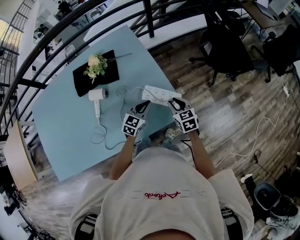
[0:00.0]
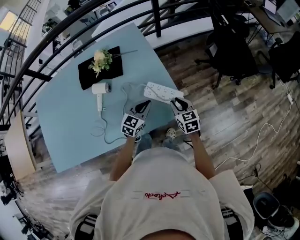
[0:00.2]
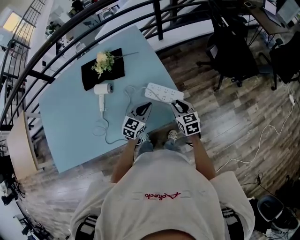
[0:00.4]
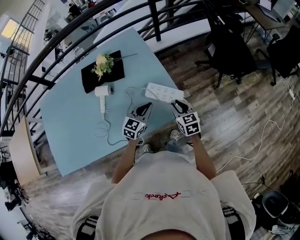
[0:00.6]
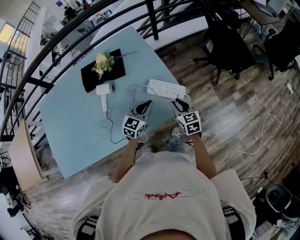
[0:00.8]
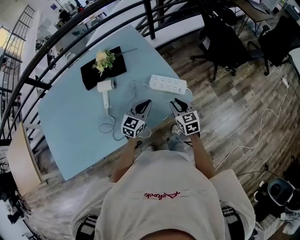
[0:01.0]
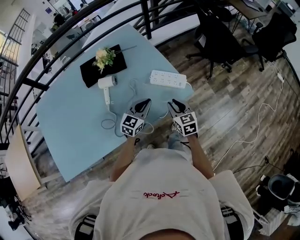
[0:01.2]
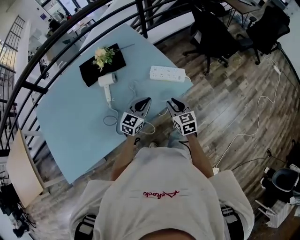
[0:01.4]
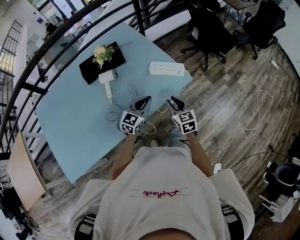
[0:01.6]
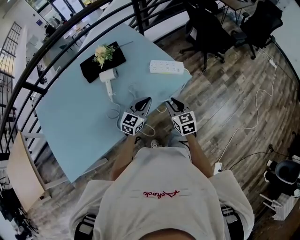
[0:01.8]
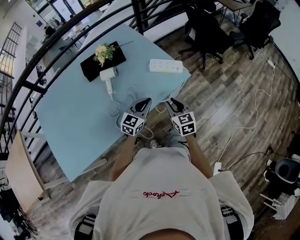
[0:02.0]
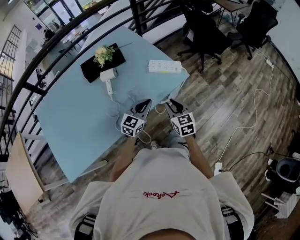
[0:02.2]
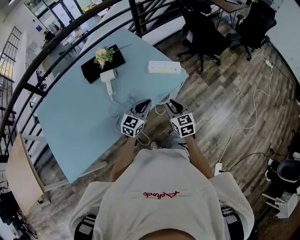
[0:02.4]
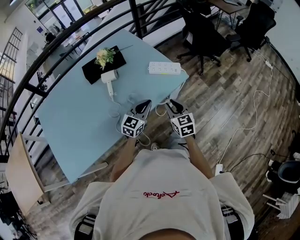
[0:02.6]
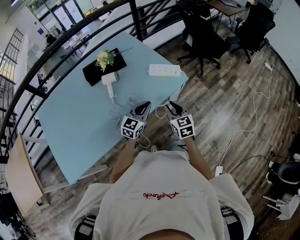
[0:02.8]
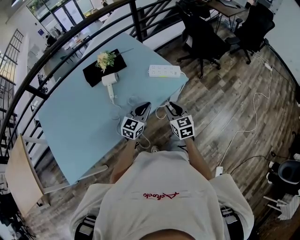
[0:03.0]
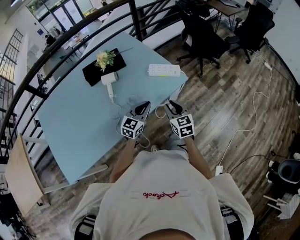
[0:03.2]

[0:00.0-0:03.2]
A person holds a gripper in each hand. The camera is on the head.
0:00.0 to 0:01.6: The right gripper heads backward and to the left, covering some 25 cm. The left gripper moves backward, about 20 cm.
0:01.6 to 0:03.2: Both grippers travel together backward, roughly 5 cm.

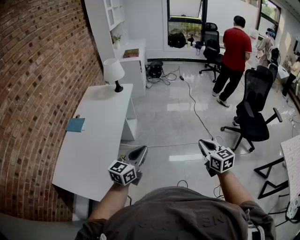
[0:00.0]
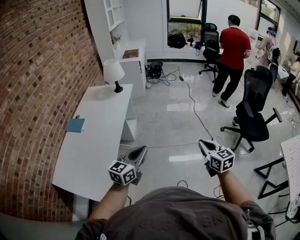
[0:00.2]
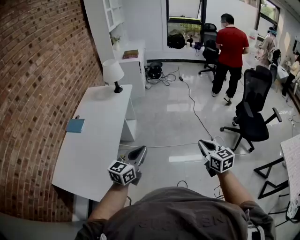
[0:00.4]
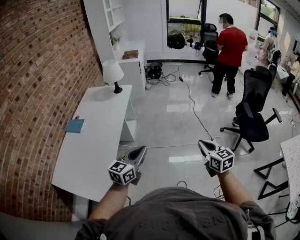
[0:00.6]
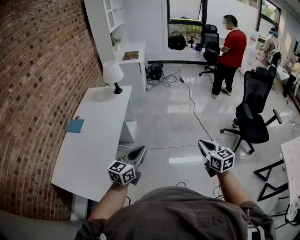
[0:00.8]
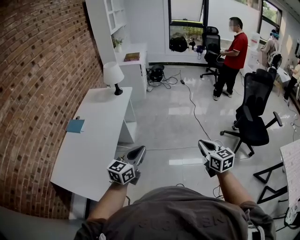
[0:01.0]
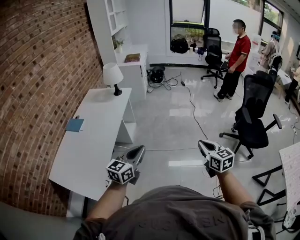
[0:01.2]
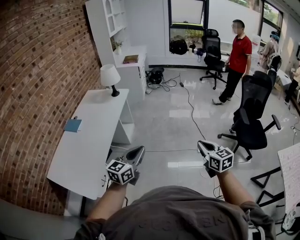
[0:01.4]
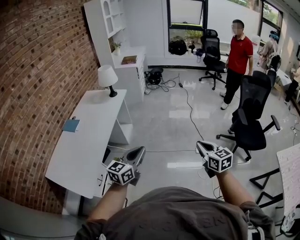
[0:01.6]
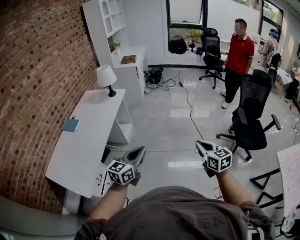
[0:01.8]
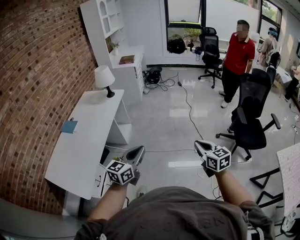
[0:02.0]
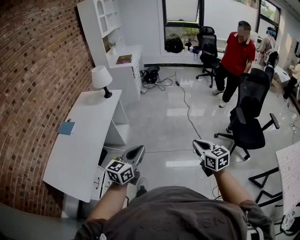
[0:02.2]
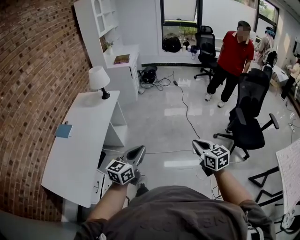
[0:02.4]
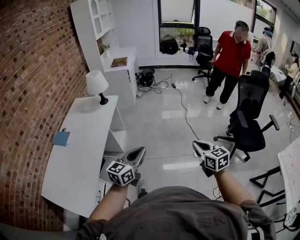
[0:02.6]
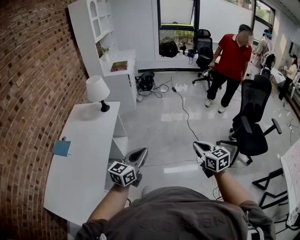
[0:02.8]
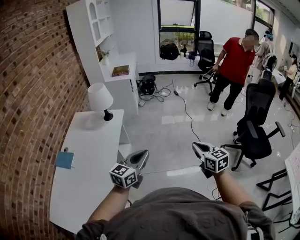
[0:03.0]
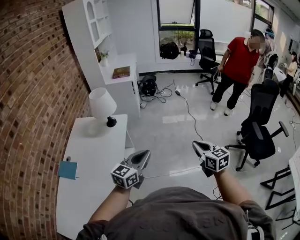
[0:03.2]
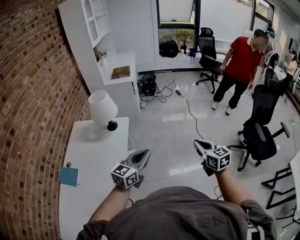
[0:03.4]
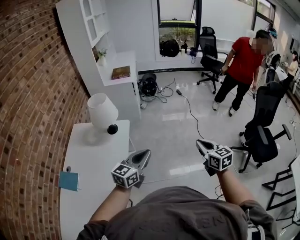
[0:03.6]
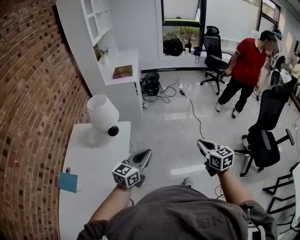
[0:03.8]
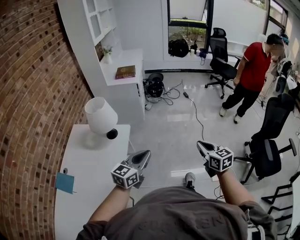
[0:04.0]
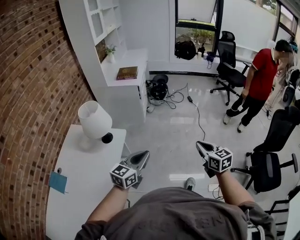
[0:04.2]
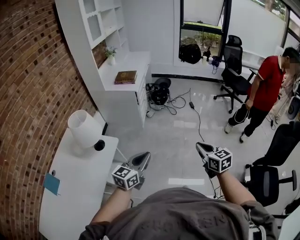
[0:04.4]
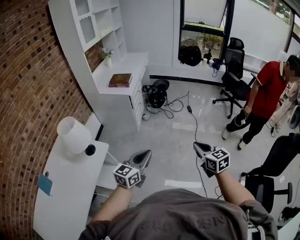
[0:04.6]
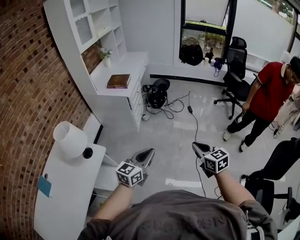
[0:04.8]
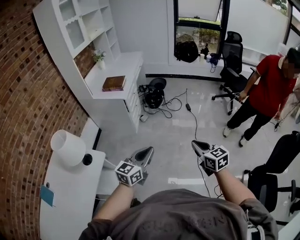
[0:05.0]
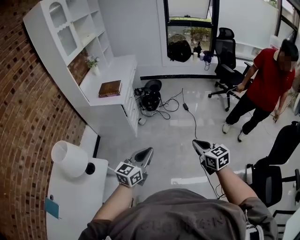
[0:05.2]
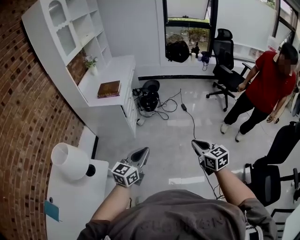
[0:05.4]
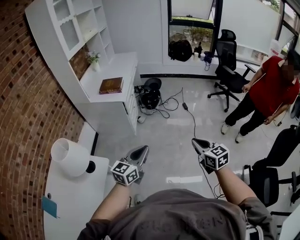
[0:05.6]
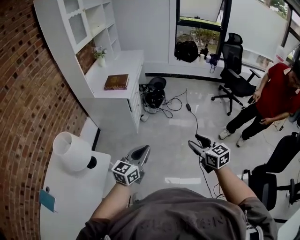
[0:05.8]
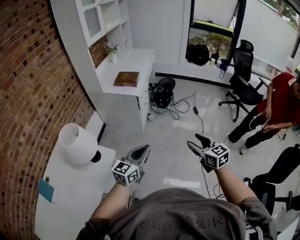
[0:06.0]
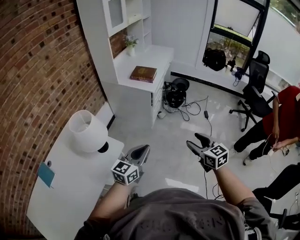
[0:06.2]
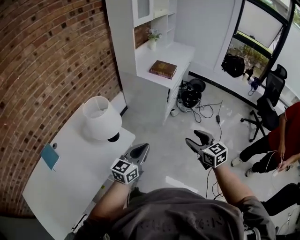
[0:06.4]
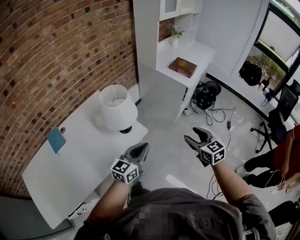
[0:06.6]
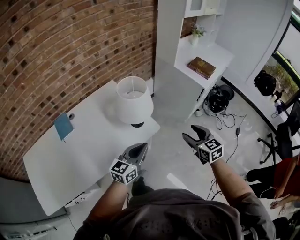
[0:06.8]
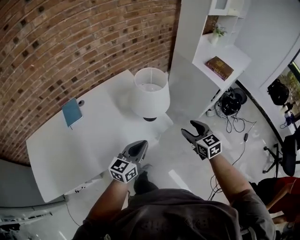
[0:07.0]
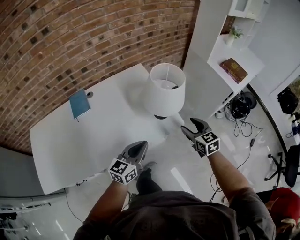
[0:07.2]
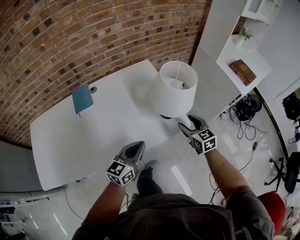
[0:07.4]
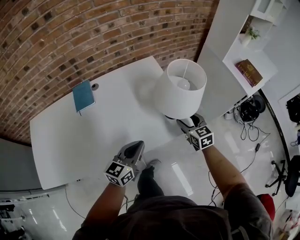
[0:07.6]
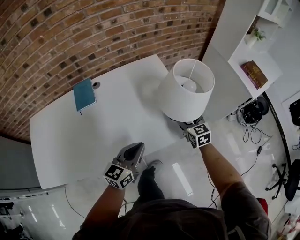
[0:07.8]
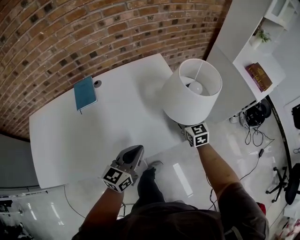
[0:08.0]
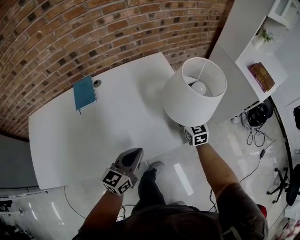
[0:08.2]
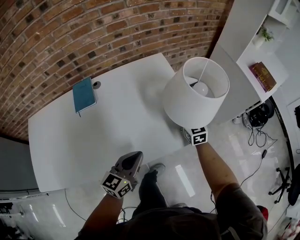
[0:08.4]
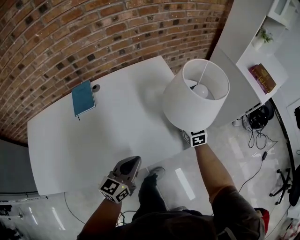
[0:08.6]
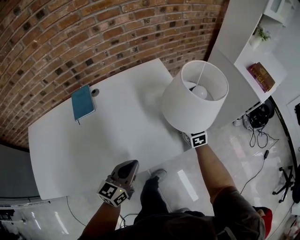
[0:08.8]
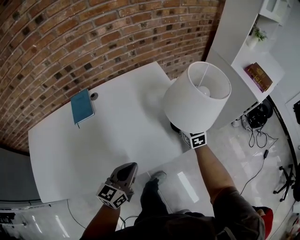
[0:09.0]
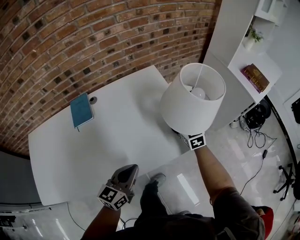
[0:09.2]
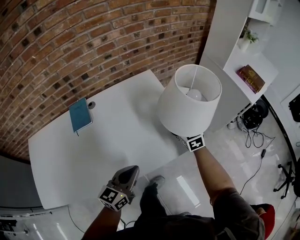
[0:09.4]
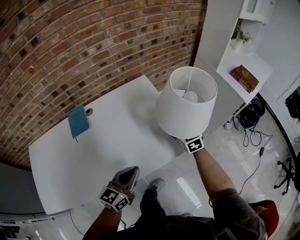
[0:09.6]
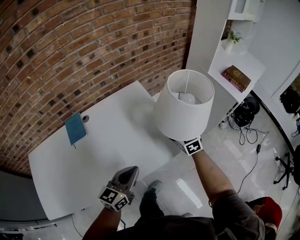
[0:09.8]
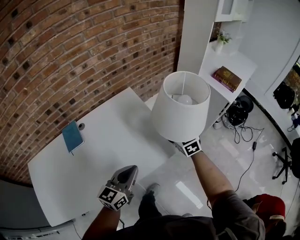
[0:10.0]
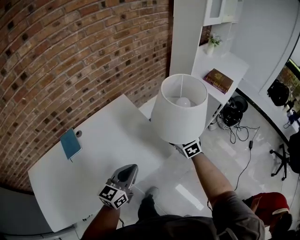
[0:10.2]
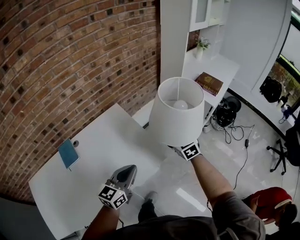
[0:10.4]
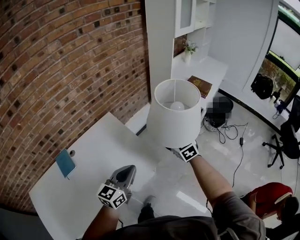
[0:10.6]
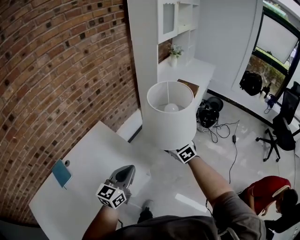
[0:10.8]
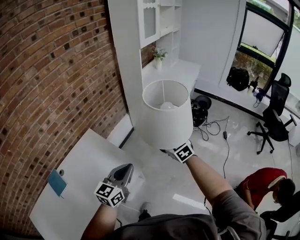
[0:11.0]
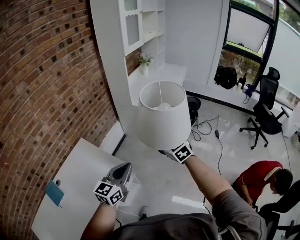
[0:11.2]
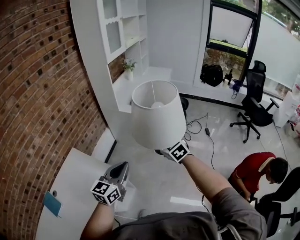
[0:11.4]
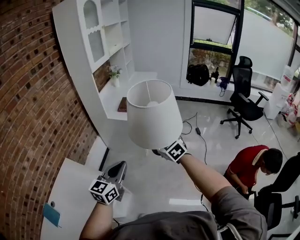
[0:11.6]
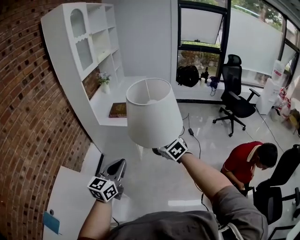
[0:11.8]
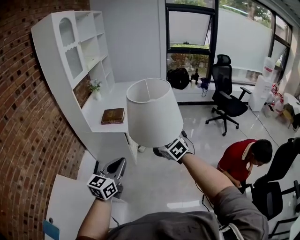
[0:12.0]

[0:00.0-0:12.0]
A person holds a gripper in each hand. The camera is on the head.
0:00.0 to 0:01.6: Both grippers move to the right, about 15 cm.
0:01.6 to 0:03.0: The two grippers go about 30 cm forward and to the left.
0:03.0 to 0:04.4: Both grippers are carried forward, roughly 50 cm.
0:04.4 to 0:06.0: Both grippers move forward, roughly 20 cm. The right gripper opens its fingers.
0:06.0 to 0:07.6: Both grippers are carried some 50 cm. The left gripper swivels about 50 degrees, while the right gripper changes its angle by about 50 degrees.
0:07.6 to 0:09.0: The left gripper heads to the left and downward, covering about 5 cm. The right gripper travels forward and to the left by roughly 10 cm, and closes up.
0:09.0 to 0:10.4: The right gripper is displaced to the right and upward by some 20 cm. The left gripper moves upward, to the right and forward, approximately 20 cm.
0:10.4 to 0:12.0: The left gripper shifts by about 40 cm, and rotates some 40 degrees. Meanwhile the right gripper shifts by some 40 cm, and turns by roughly 30 degrees.

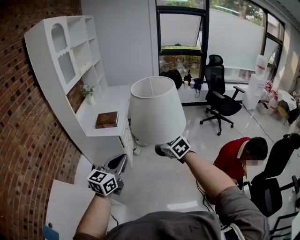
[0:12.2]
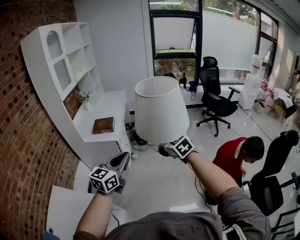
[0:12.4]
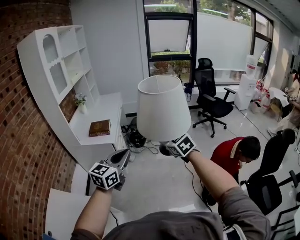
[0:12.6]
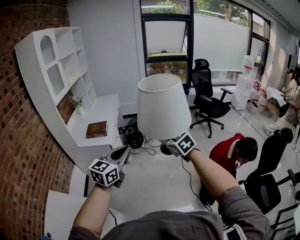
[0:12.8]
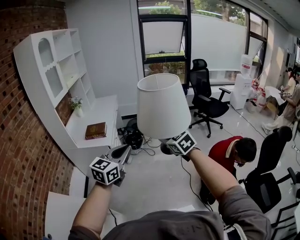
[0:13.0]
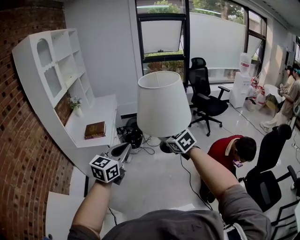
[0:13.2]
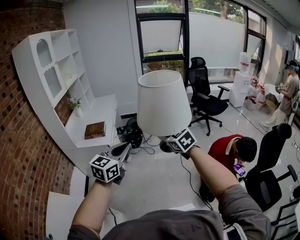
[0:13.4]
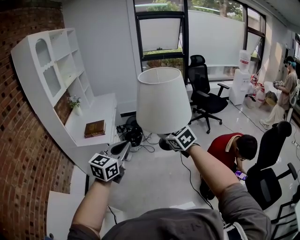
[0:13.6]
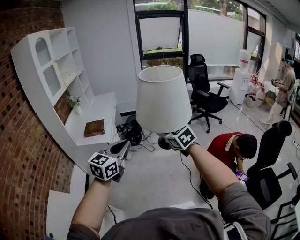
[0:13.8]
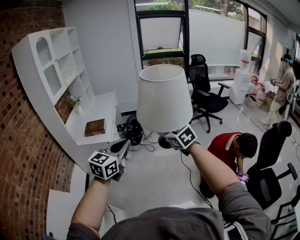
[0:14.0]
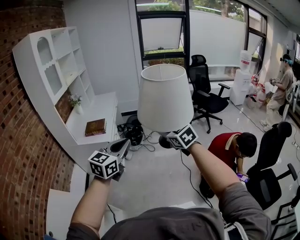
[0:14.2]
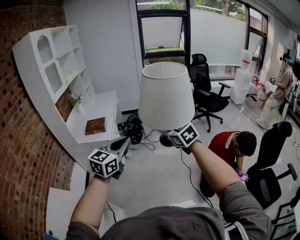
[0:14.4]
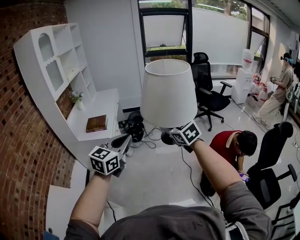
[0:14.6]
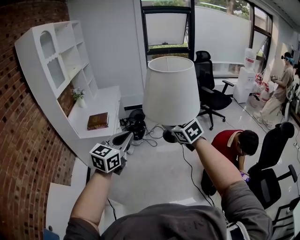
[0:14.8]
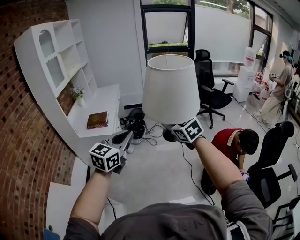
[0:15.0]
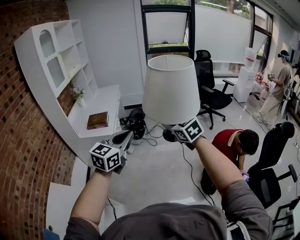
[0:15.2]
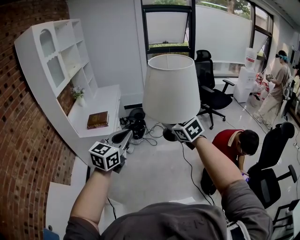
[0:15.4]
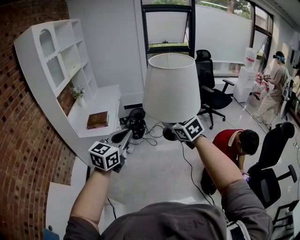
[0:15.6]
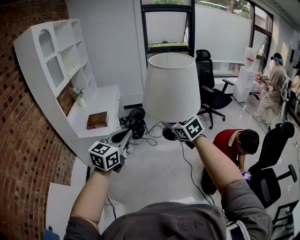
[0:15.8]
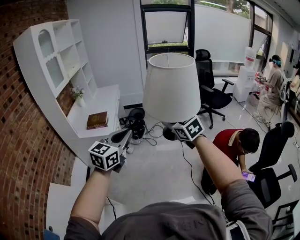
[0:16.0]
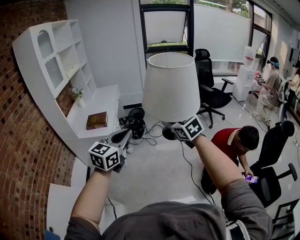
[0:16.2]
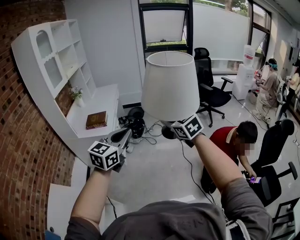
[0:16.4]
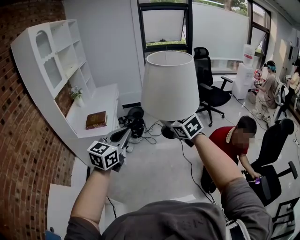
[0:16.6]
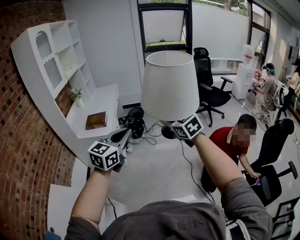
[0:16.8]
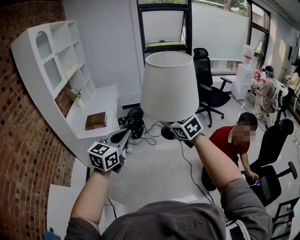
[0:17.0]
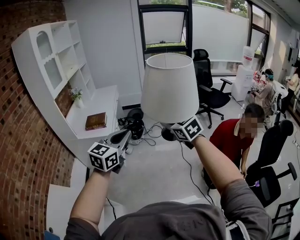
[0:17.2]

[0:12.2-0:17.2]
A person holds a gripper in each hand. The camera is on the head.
0:12.2 to 0:13.8: The right gripper moves to the right, about 10 cm; the left gripper shifts roughly 10 cm to the right and upward.
0:13.8 to 0:15.6: The grippers stay close to where they were, moving slightly.
0:15.6 to 0:17.2: The two grippers keep their place.

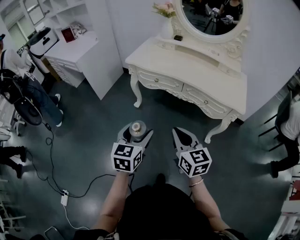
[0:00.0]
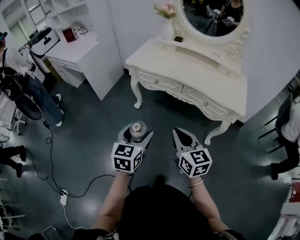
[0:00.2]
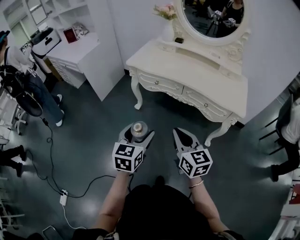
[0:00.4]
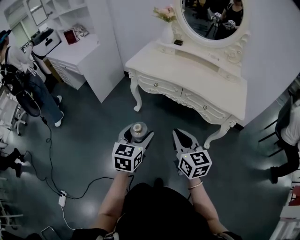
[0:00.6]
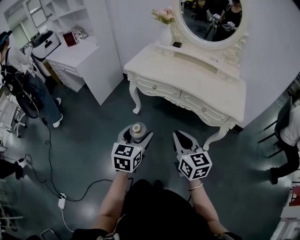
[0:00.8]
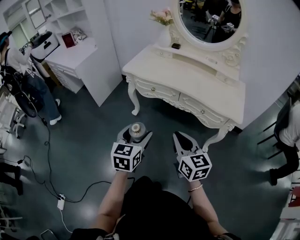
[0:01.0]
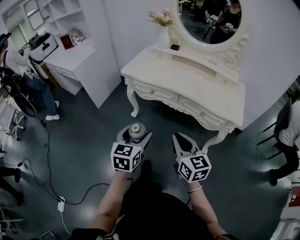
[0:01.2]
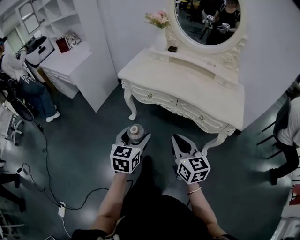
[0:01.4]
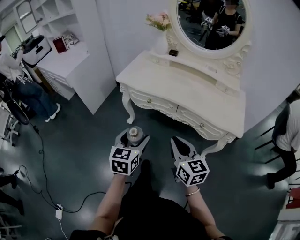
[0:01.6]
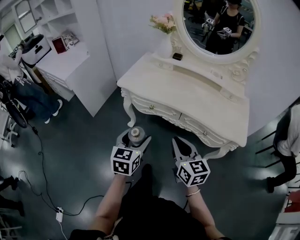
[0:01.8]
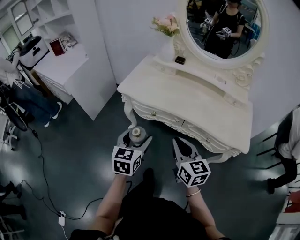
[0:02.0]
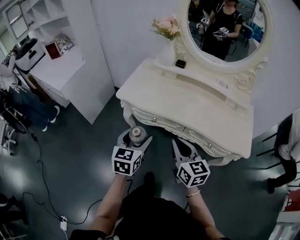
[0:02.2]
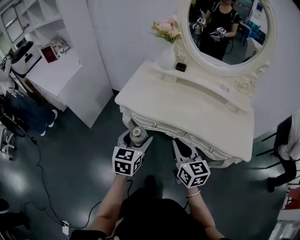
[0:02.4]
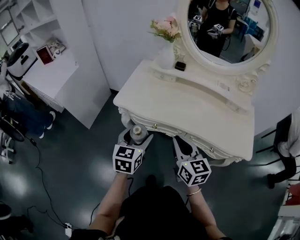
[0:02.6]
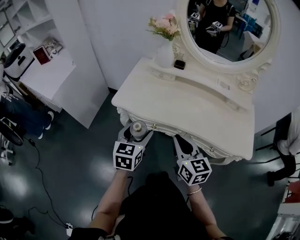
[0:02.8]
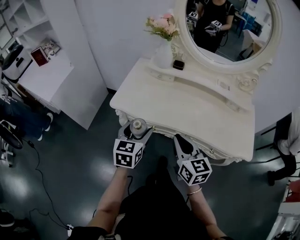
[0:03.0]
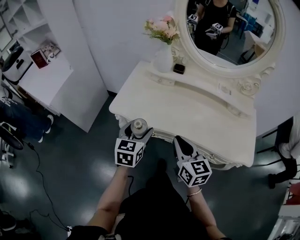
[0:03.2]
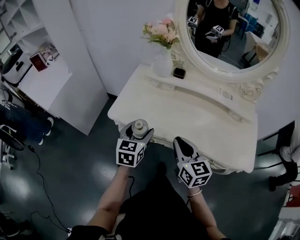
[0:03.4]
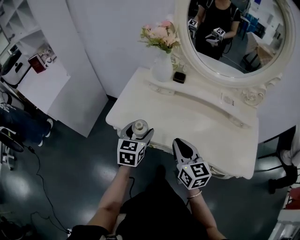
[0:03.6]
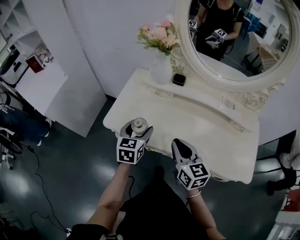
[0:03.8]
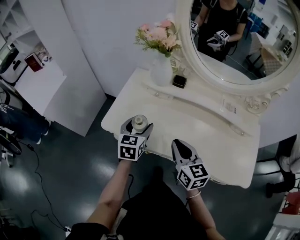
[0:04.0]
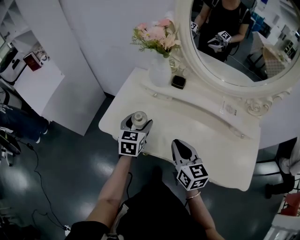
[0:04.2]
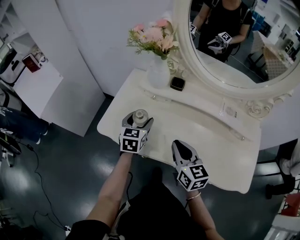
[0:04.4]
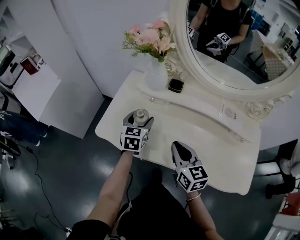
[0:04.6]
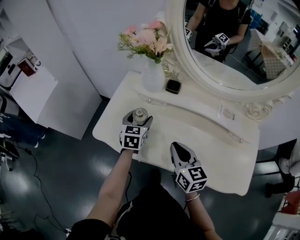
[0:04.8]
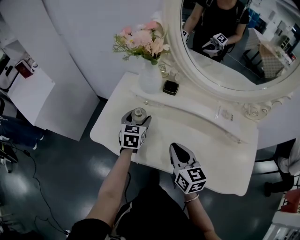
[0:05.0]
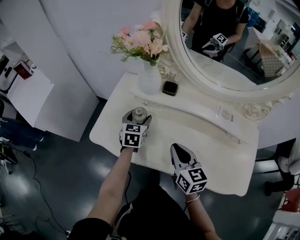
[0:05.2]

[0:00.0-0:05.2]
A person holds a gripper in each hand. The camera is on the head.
0:00.0 to 0:01.8: The grippers both shift forward by approximately 20 cm.
0:01.8 to 0:03.4: The two grippers go about 25 cm forward.
0:03.4 to 0:05.2: The left gripper moves forward, about 25 cm, while the right gripper is displaced forward and to the right by some 15 cm.
